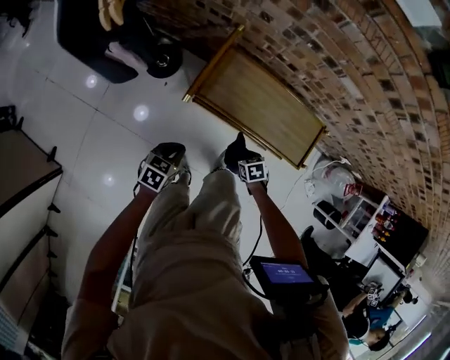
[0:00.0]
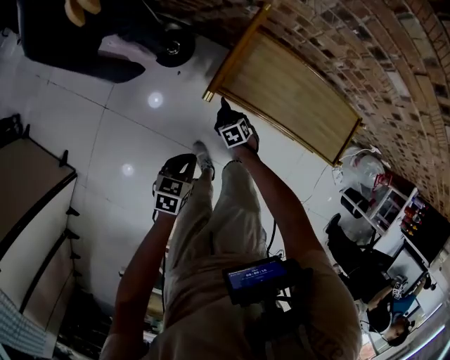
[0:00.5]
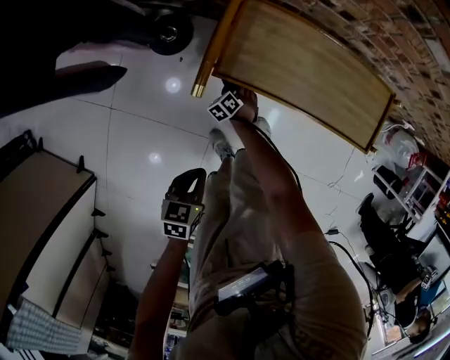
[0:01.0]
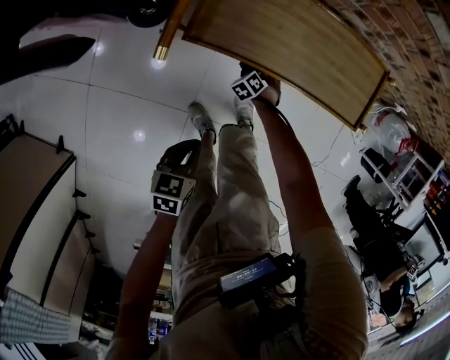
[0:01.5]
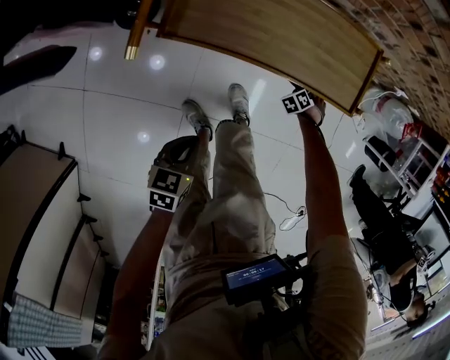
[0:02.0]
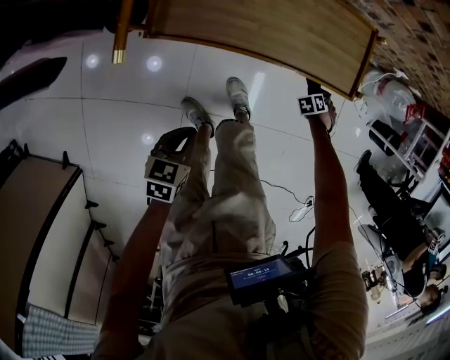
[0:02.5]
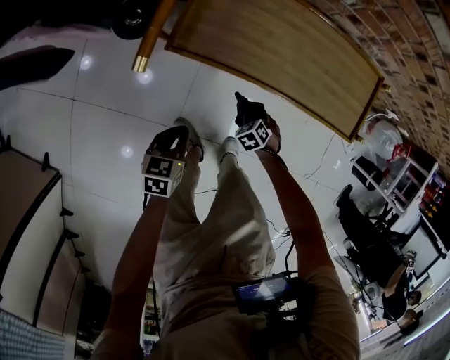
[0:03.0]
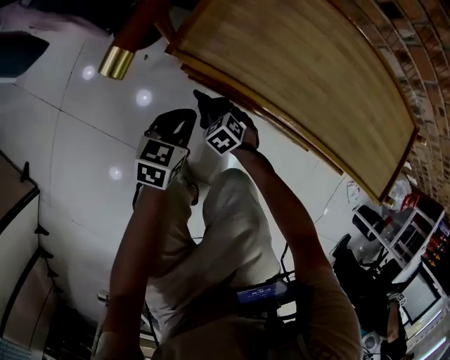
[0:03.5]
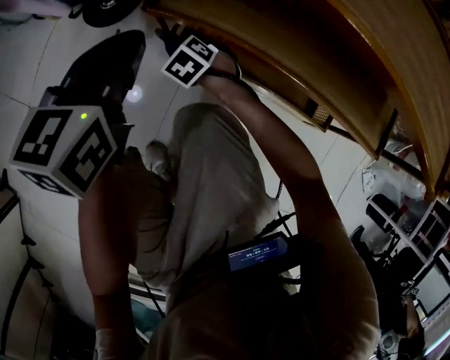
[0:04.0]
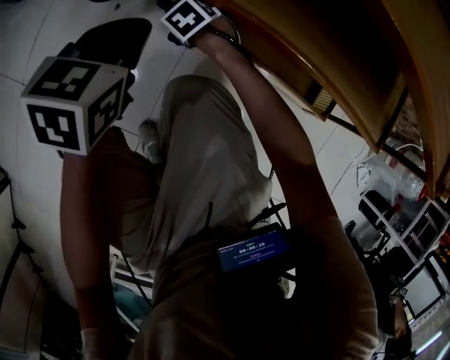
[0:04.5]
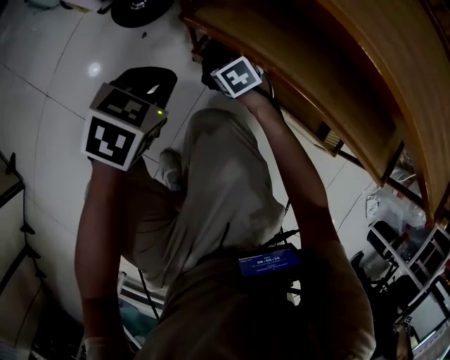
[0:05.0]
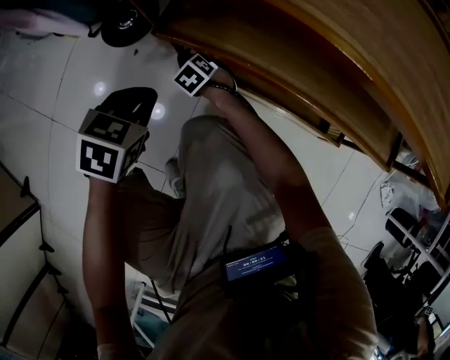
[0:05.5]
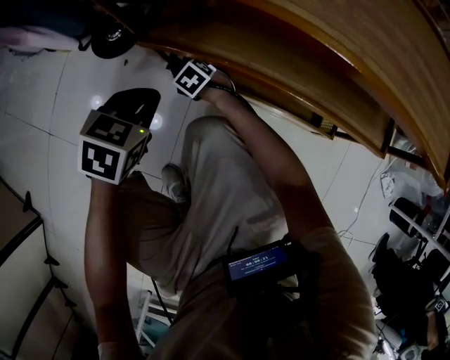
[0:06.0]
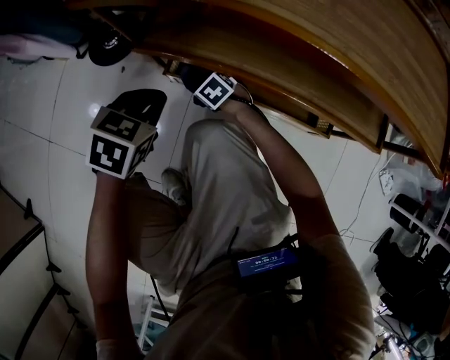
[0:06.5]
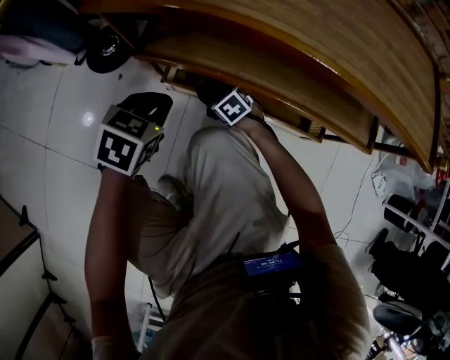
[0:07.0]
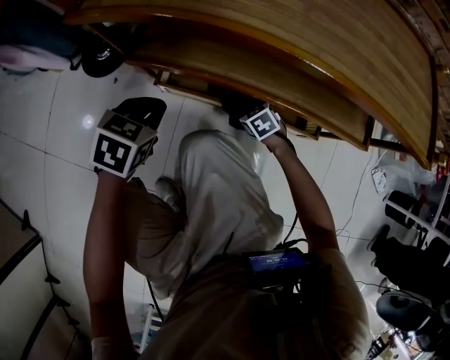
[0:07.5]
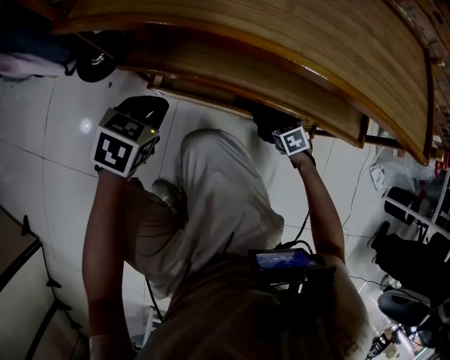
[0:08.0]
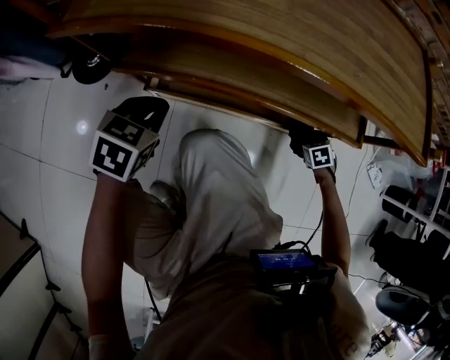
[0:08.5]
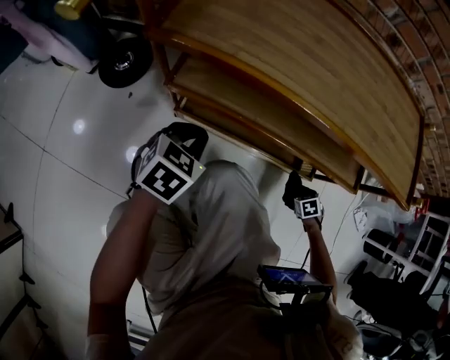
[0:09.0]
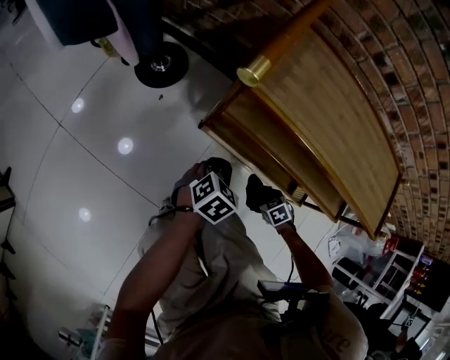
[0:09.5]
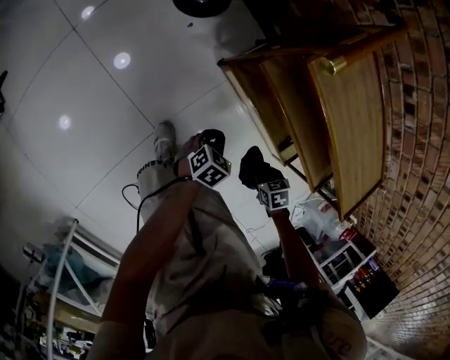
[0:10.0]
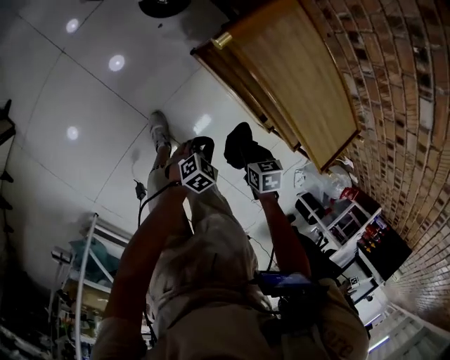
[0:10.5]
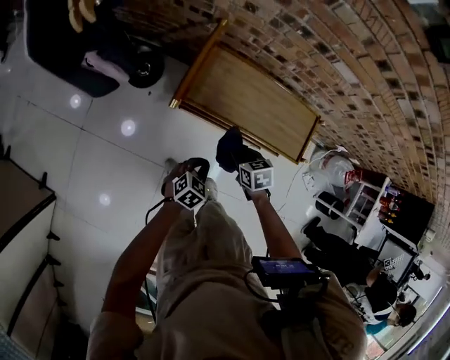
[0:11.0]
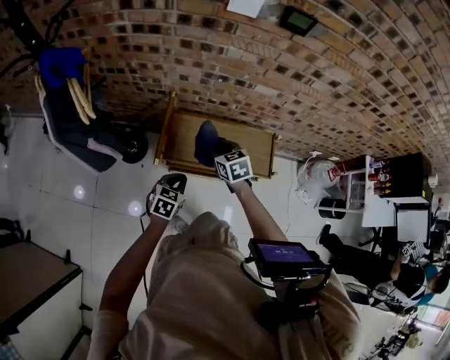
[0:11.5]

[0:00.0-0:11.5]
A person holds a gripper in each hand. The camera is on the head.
0:00.0 to 0:02.0: The right gripper is displaced downward by roughly 30 cm, and changes its angle by about 40 degrees. Meanwhile the left gripper travels downward by some 10 cm.
0:02.0 to 0:04.0: The left gripper shifts by some 30 cm, and swivels about 40 degrees; the right gripper shifts by about 50 cm, and rotates approximately 50 degrees.
0:04.0 to 0:06.0: The left gripper moves downward, some 10 cm, and changes its angle by about 30 degrees. The right gripper shifts some 5 cm downward.
0:06.0 to 0:07.5: The right gripper shifts approximately 25 cm to the right and backward.
0:09.5 to 0:11.5: Both grippers travel together upward, roughly 60 cm. The right gripper tilts its fingers about 30 degrees upward.

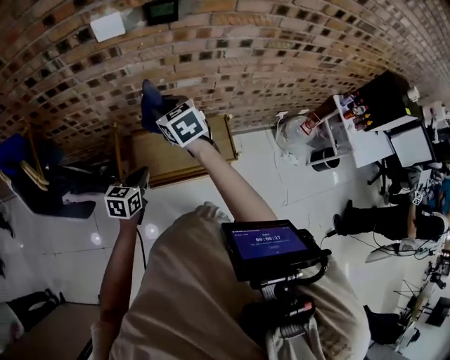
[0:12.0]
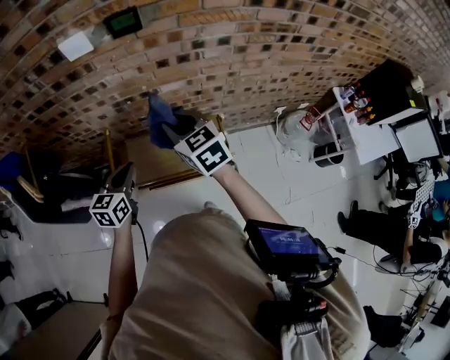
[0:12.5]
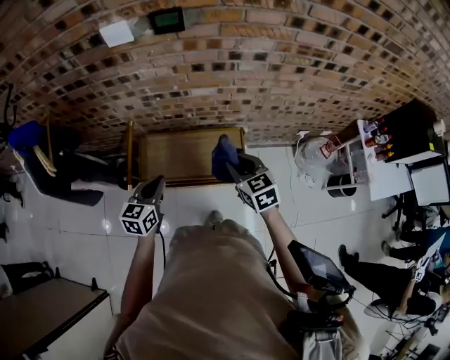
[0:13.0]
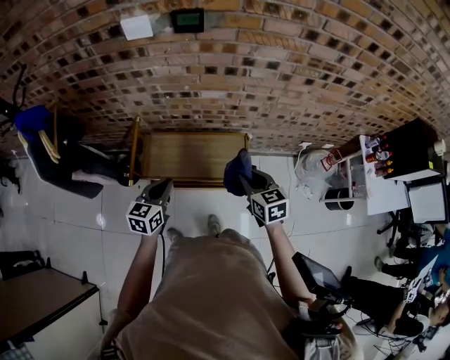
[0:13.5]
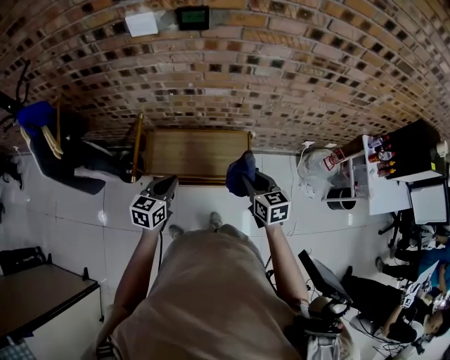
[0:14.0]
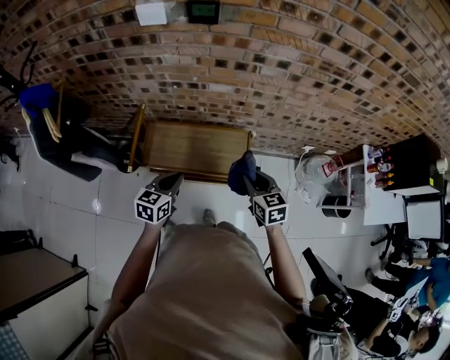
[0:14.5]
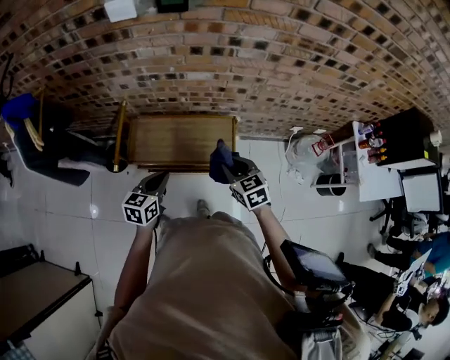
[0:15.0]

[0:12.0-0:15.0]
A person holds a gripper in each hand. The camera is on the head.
0:12.0 to 0:13.5: The right gripper moves to the right, backward and downward, about 30 cm, while the left gripper heads to the right, covering roughly 10 cm.
0:13.5 to 0:15.0: The left gripper shifts by some 5 cm.

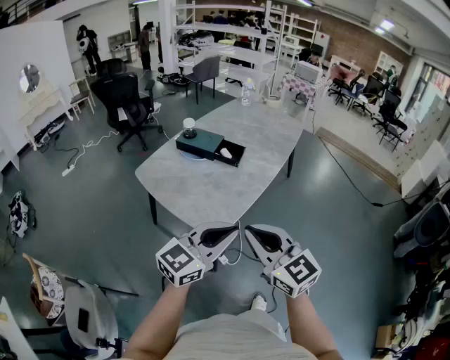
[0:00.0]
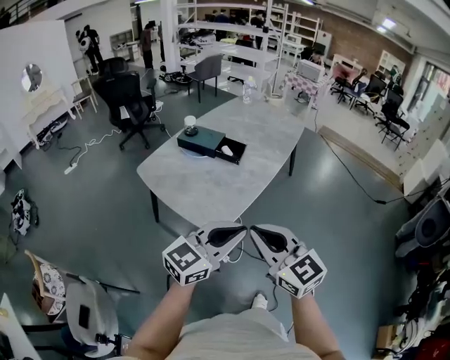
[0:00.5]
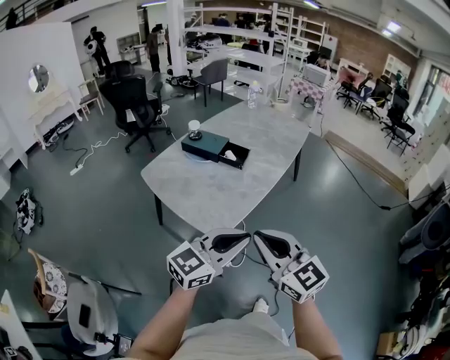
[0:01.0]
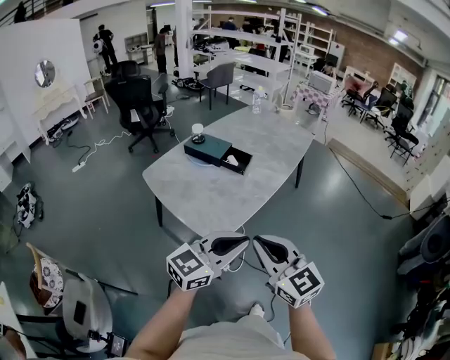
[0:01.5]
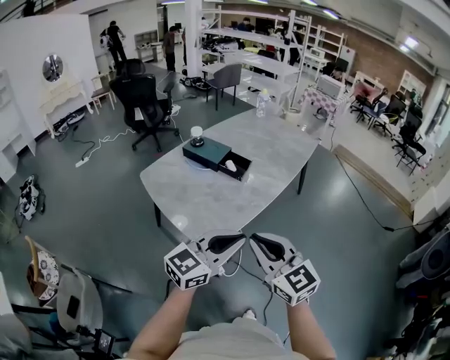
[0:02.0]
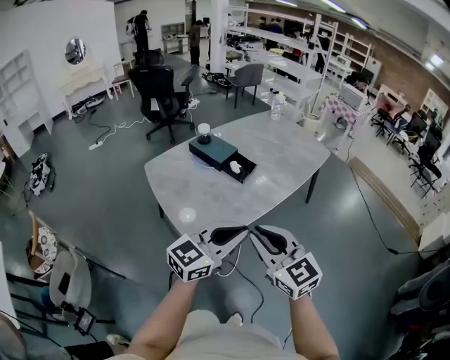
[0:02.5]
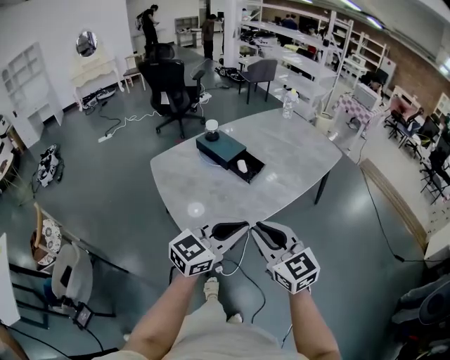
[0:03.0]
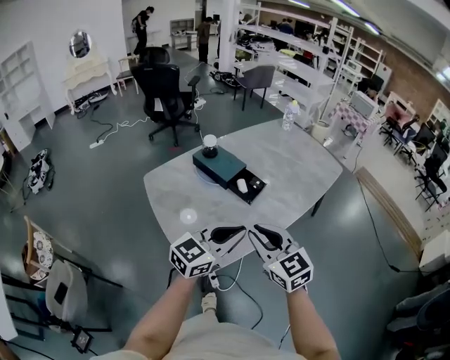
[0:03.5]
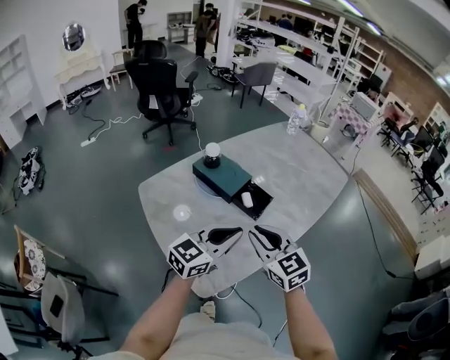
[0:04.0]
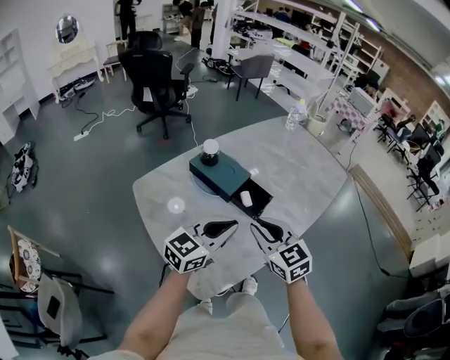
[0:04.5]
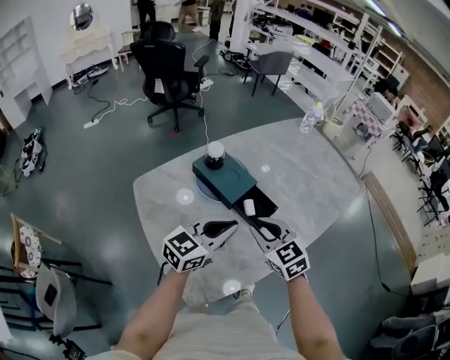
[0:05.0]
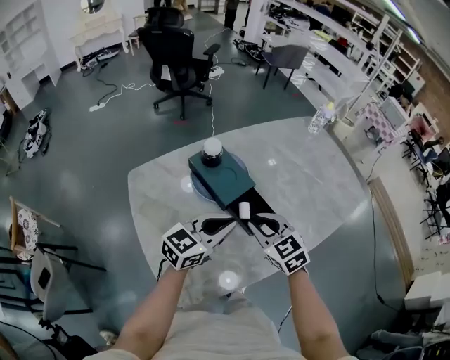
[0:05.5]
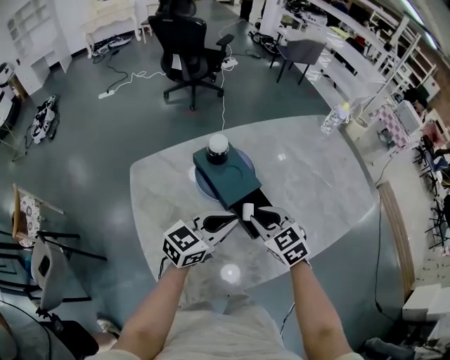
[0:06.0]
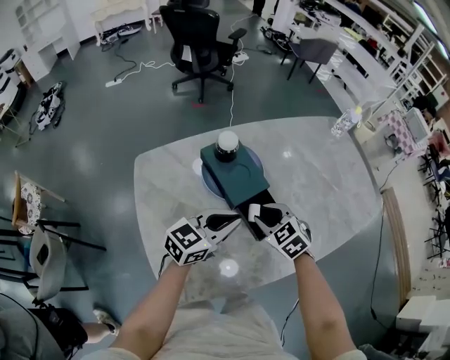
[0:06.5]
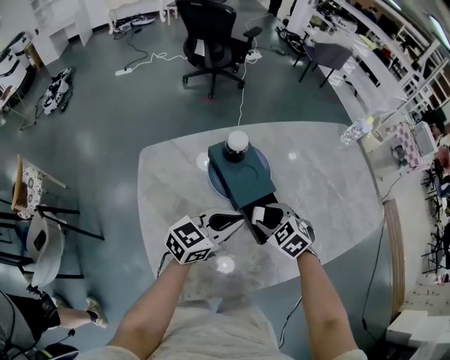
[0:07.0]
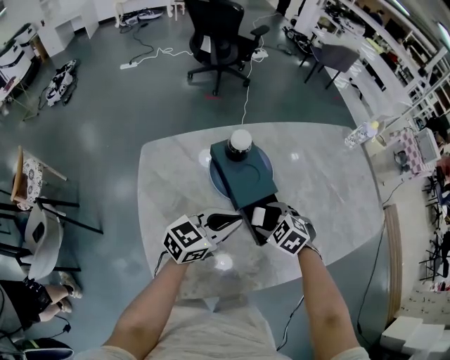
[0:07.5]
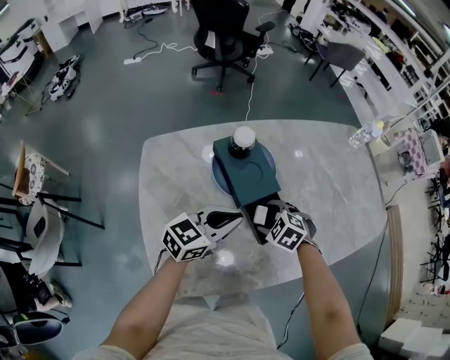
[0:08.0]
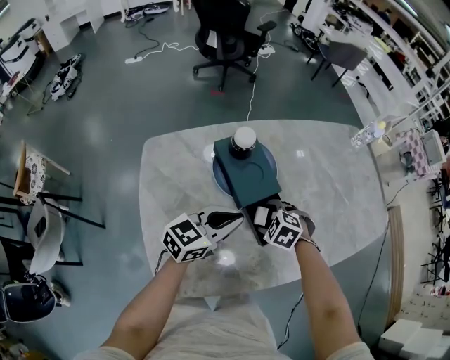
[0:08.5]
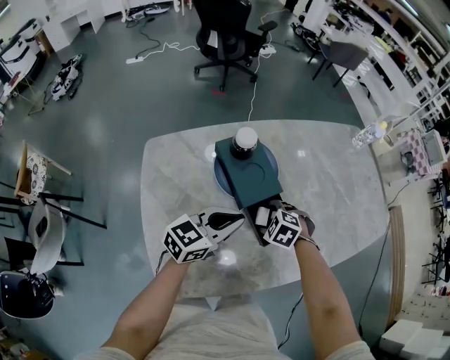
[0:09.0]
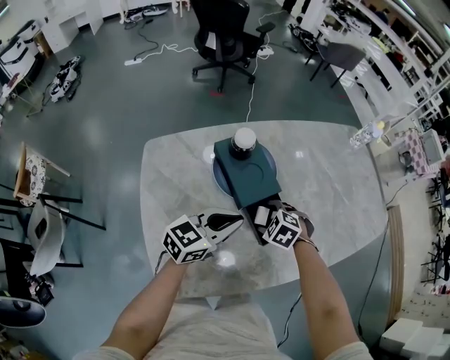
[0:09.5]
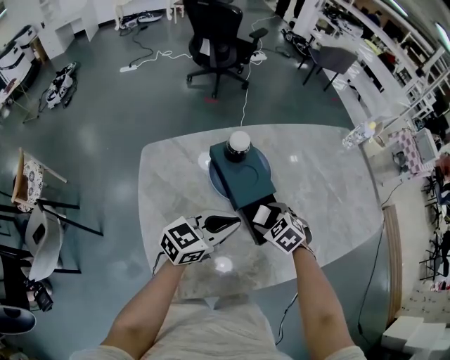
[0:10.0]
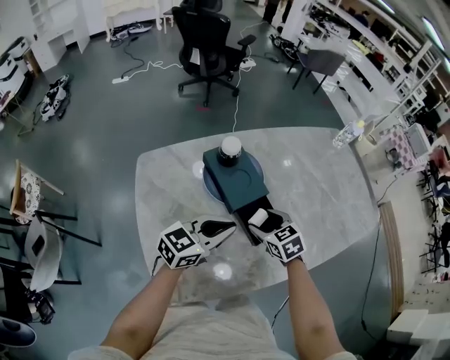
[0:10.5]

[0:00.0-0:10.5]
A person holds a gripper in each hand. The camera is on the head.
0:00.0 to 0:02.0: The right gripper travels forward and to the right by about 10 cm. Meanwhile the left gripper goes approximately 10 cm to the right and forward.
0:02.0 to 0:04.0: The two grippers go approximately 30 cm forward.
0:04.0 to 0:06.5: Both grippers move forward and downward, approximately 25 cm. The right gripper angles its fingers downward, by about 30 degrees.
0:06.5 to 0:08.5: The right gripper heads downward, covering some 10 cm, rotates roughly 30 degrees, and opens up.
0:08.5 to 0:10.5: The right gripper heads upward, covering about 5 cm, and rotates approximately 50 degrees.

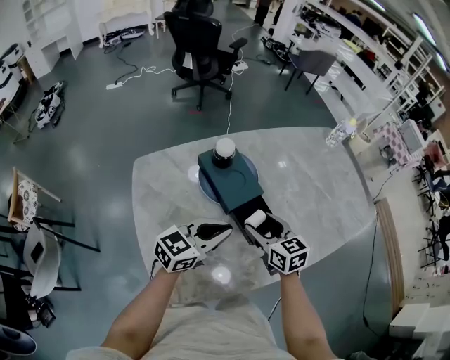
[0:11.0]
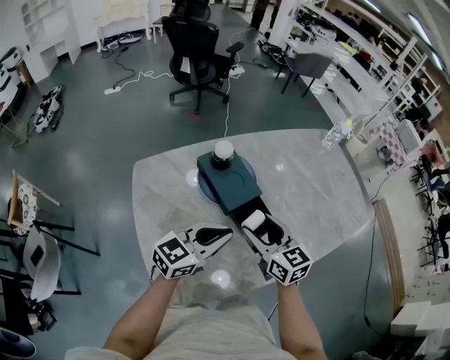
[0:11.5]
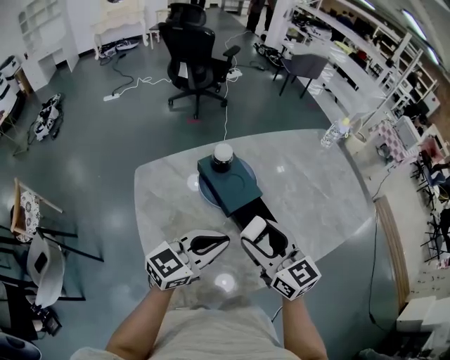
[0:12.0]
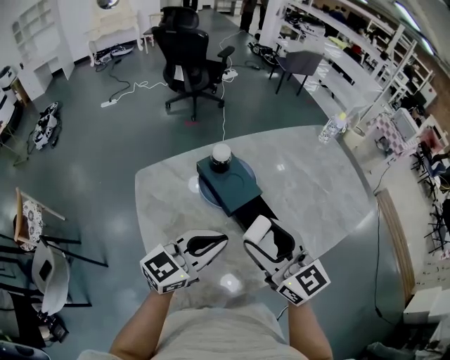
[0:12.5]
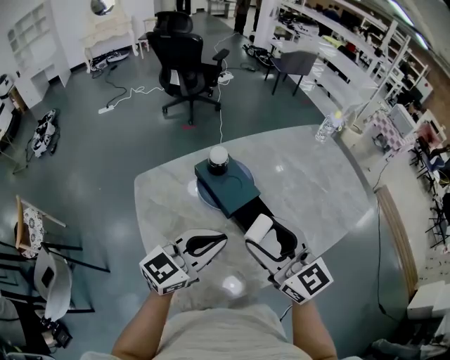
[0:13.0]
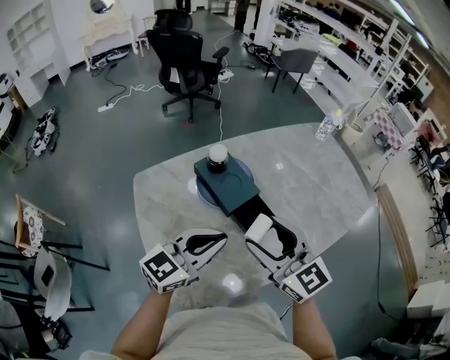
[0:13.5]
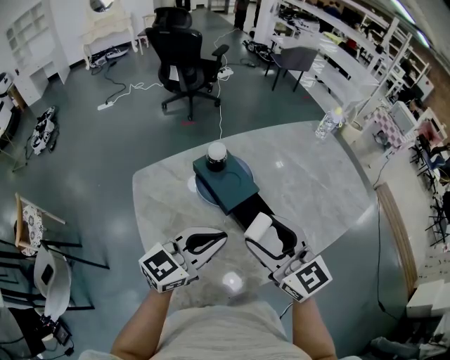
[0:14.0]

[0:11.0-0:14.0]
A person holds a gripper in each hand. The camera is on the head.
0:11.0 to 0:12.5: The left gripper shifts approximately 10 cm upward and backward; the right gripper goes approximately 20 cm upward and backward, and swivels about 30 degrees.
0:12.5 to 0:14.0: The grippers stay close to where they were, moving slightly.
